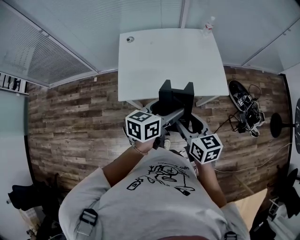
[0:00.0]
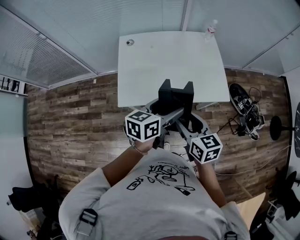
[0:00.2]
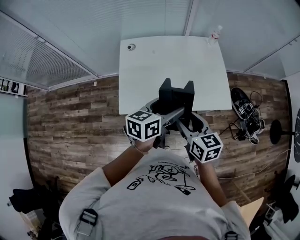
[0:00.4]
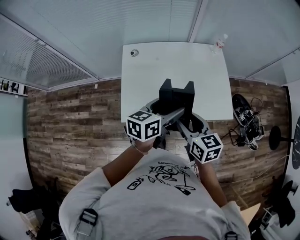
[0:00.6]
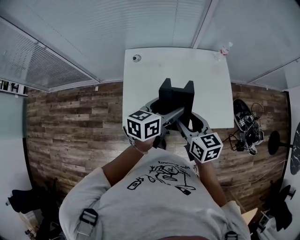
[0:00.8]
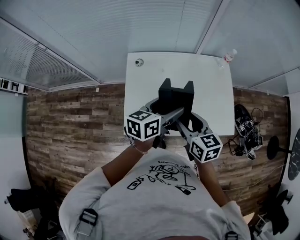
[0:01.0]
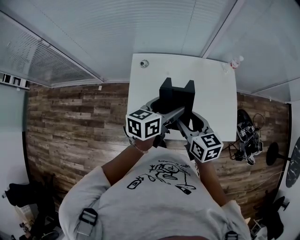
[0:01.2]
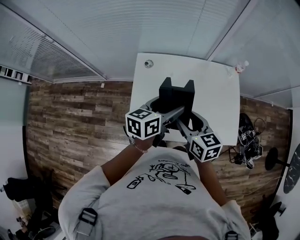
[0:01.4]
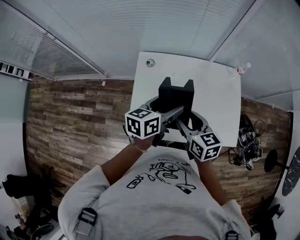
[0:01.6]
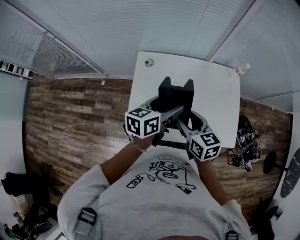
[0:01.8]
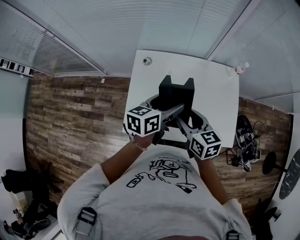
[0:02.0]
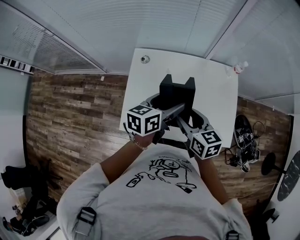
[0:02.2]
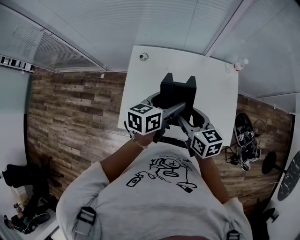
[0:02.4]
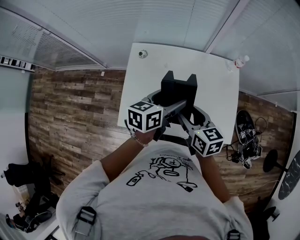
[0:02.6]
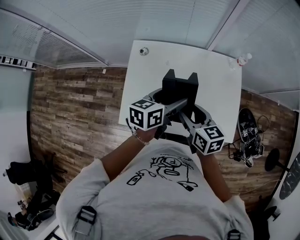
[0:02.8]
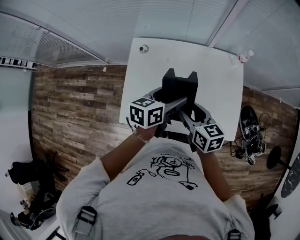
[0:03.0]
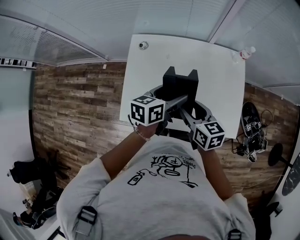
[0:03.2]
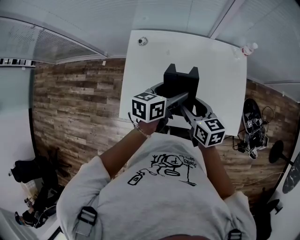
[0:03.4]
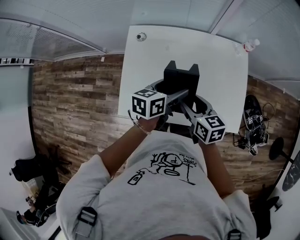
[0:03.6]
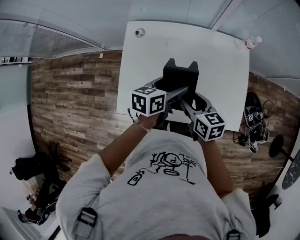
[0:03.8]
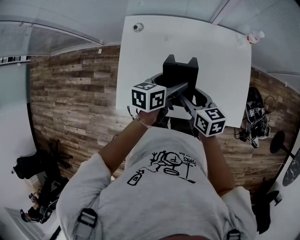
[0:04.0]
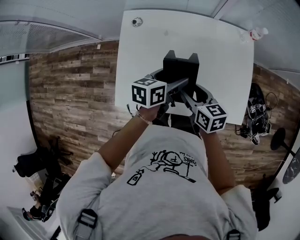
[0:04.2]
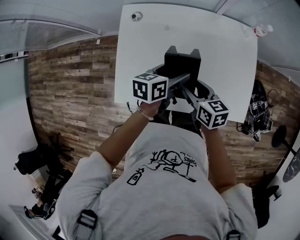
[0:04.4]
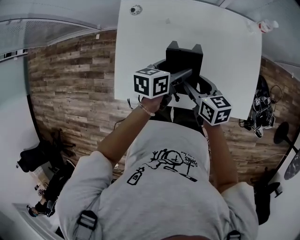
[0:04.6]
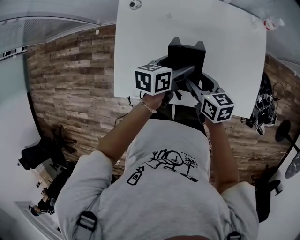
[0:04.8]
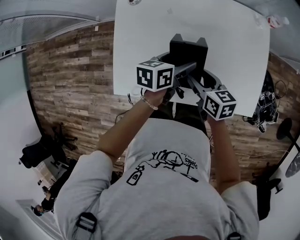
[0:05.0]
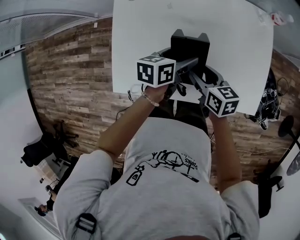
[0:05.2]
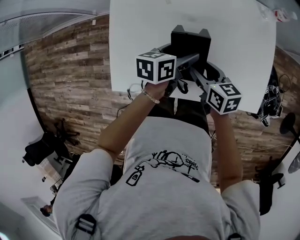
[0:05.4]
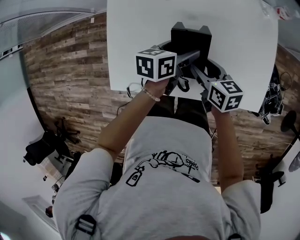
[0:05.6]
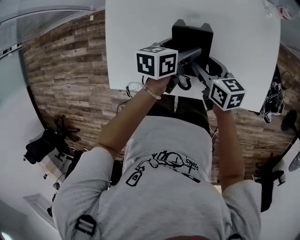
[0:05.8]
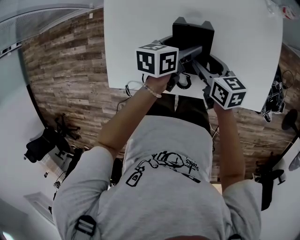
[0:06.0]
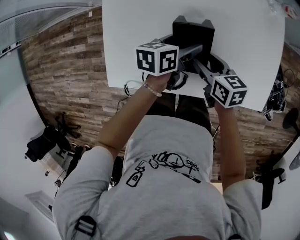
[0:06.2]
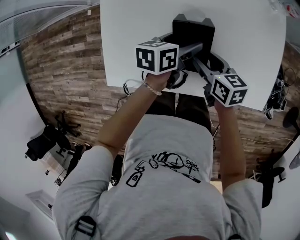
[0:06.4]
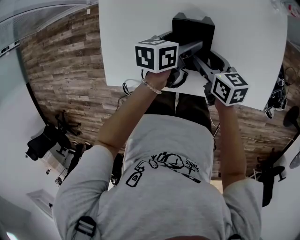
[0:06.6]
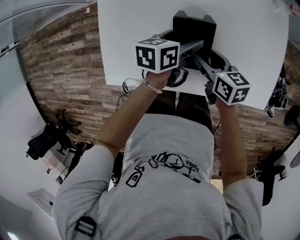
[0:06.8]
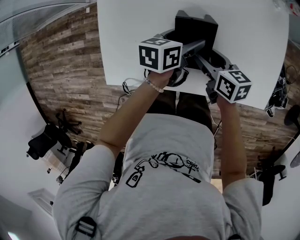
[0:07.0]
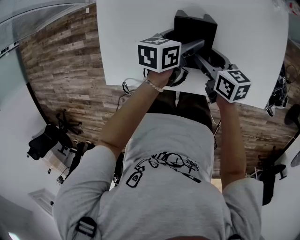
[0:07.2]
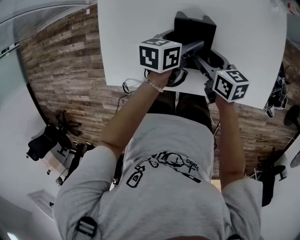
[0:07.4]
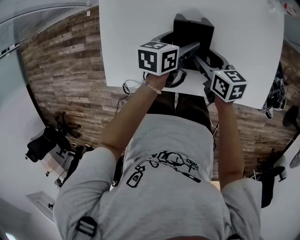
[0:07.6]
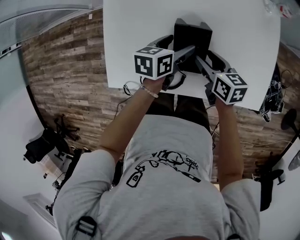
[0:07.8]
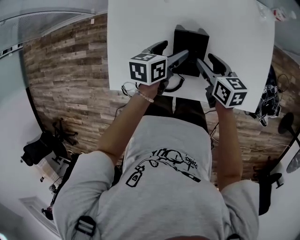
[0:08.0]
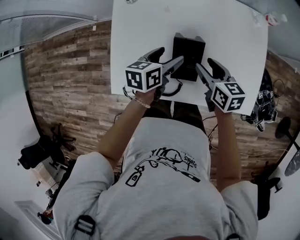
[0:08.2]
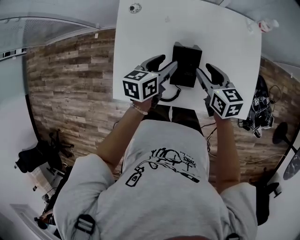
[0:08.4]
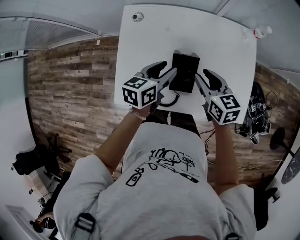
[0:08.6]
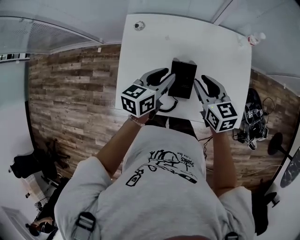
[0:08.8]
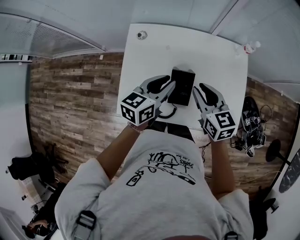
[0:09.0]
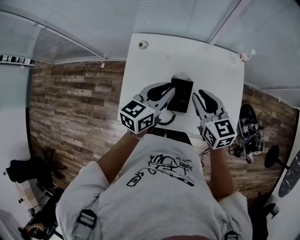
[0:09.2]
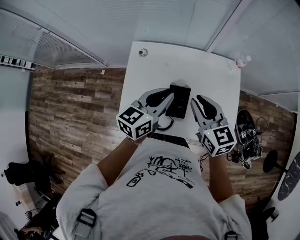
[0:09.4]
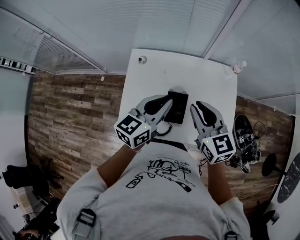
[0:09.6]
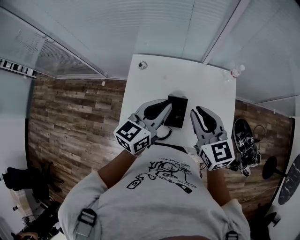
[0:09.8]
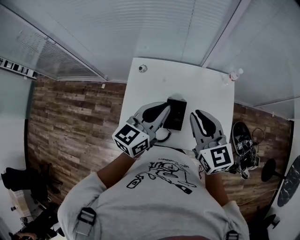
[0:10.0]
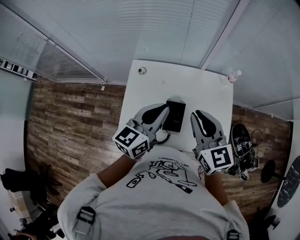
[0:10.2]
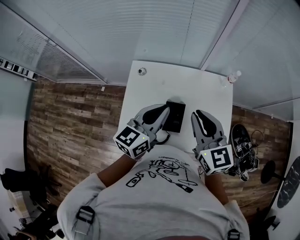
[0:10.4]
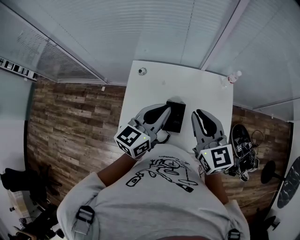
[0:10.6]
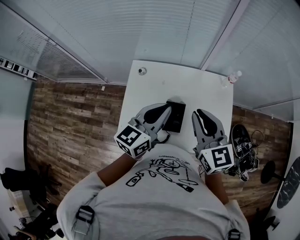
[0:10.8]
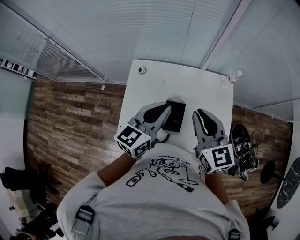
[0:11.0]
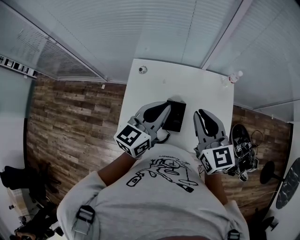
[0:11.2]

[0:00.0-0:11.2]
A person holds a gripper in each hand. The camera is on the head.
0:00.0 to 0:01.6: The grippers both shift forward and to the left by some 35 cm.
0:01.6 to 0:03.2: Both grippers move to the right and downward, roughly 10 cm.
0:03.2 to 0:04.8: Both grippers move downward, some 15 cm.
0:04.8 to 0:06.4: Both grippers travel together downward, about 10 cm.
0:06.4 to 0:08.0: The grippers move only a little.
0:08.0 to 0:09.6: The grippers both shift upward by roughly 30 cm. The right gripper changes its angle by approximately 40 degrees, and closes up. Meanwhile the left gripper rotates some 40 degrees, and closes.
0:09.6 to 0:11.2: The right gripper is displaced upward by about 5 cm.

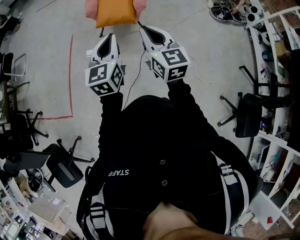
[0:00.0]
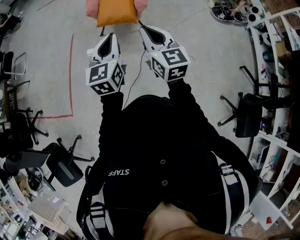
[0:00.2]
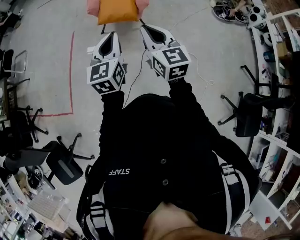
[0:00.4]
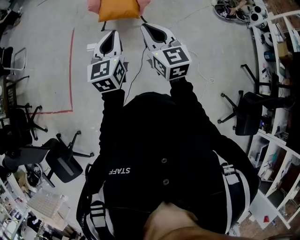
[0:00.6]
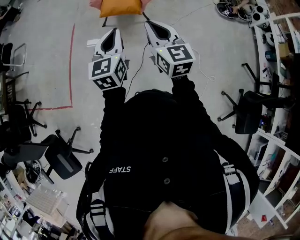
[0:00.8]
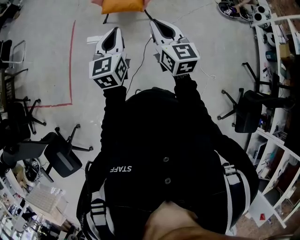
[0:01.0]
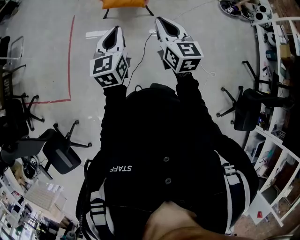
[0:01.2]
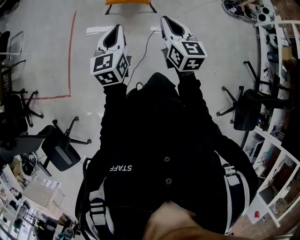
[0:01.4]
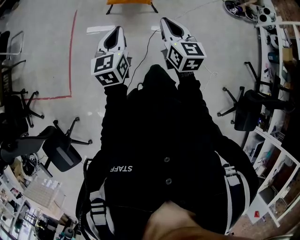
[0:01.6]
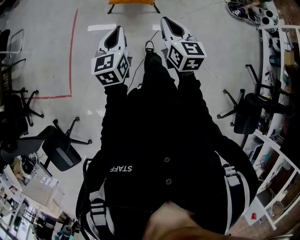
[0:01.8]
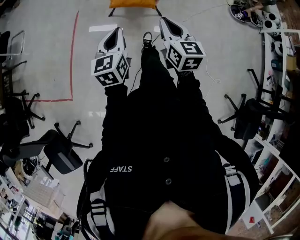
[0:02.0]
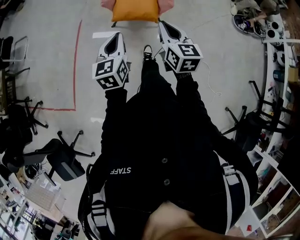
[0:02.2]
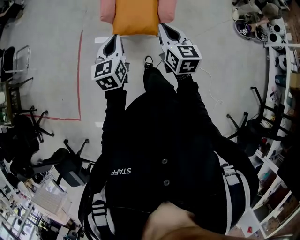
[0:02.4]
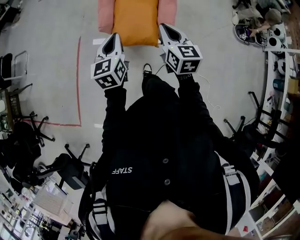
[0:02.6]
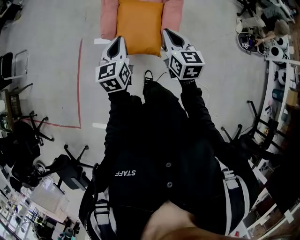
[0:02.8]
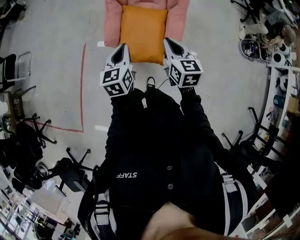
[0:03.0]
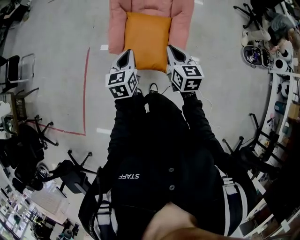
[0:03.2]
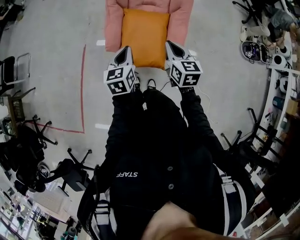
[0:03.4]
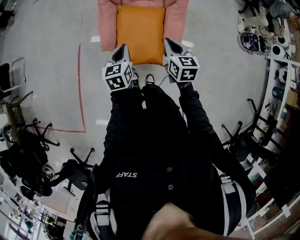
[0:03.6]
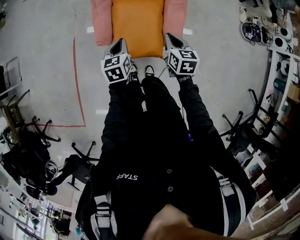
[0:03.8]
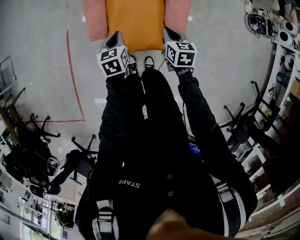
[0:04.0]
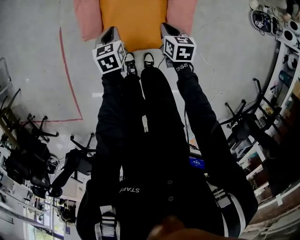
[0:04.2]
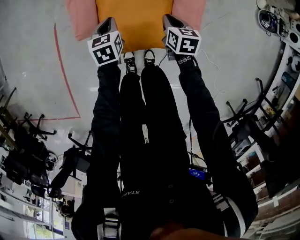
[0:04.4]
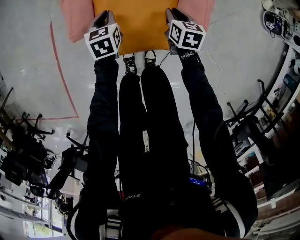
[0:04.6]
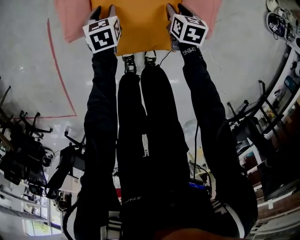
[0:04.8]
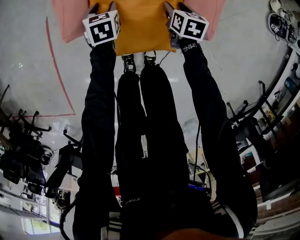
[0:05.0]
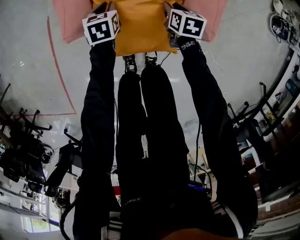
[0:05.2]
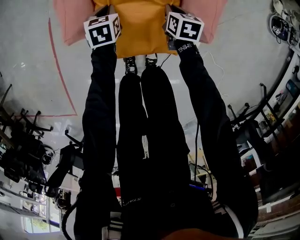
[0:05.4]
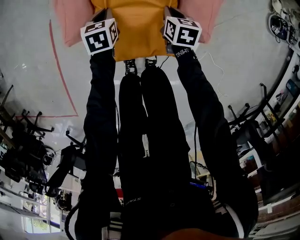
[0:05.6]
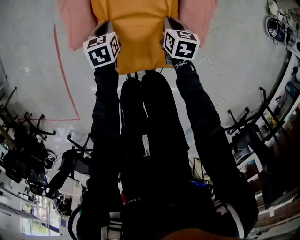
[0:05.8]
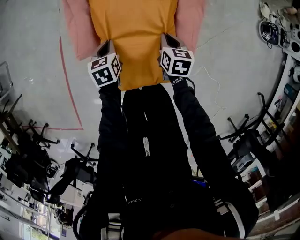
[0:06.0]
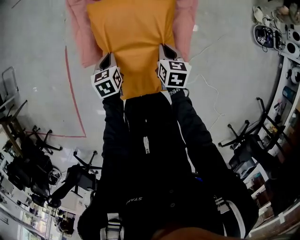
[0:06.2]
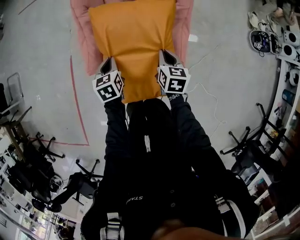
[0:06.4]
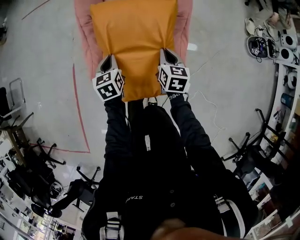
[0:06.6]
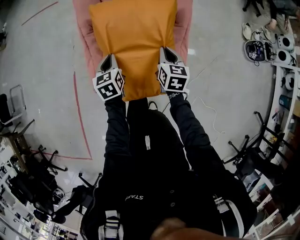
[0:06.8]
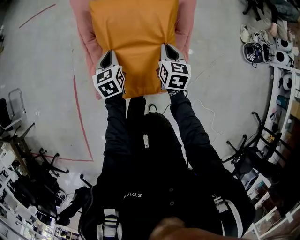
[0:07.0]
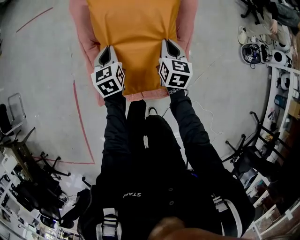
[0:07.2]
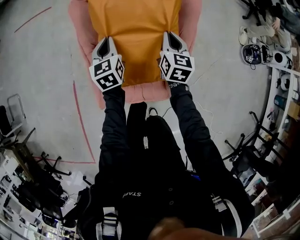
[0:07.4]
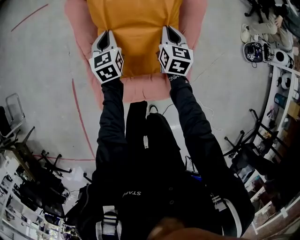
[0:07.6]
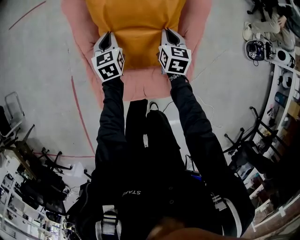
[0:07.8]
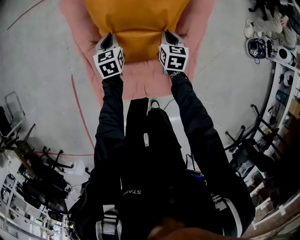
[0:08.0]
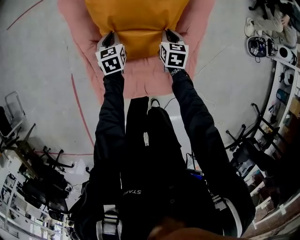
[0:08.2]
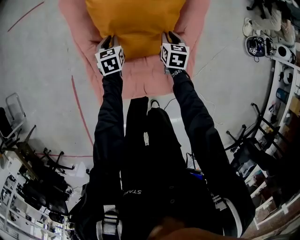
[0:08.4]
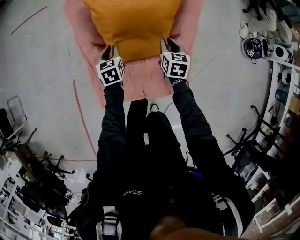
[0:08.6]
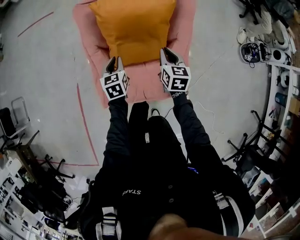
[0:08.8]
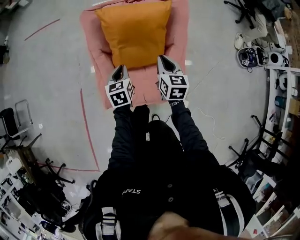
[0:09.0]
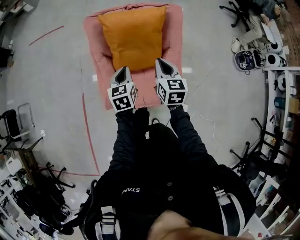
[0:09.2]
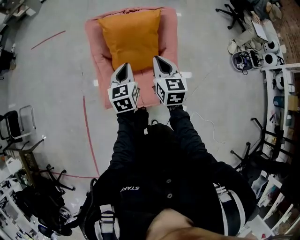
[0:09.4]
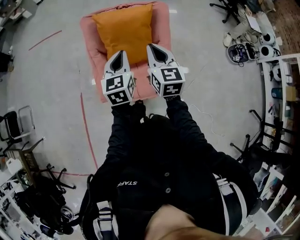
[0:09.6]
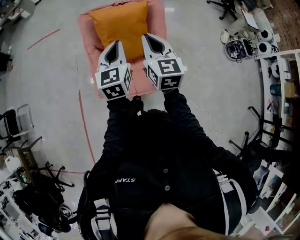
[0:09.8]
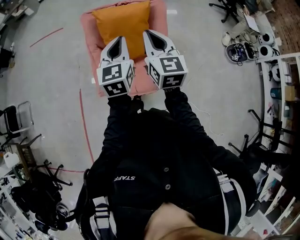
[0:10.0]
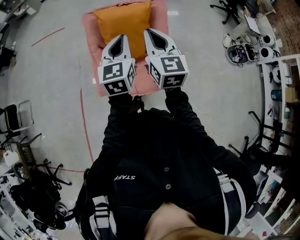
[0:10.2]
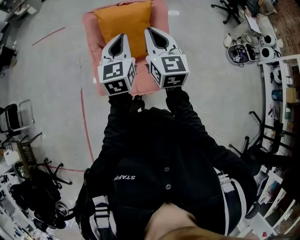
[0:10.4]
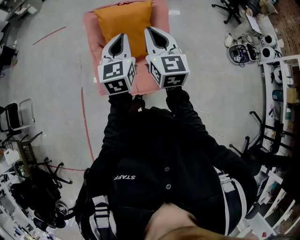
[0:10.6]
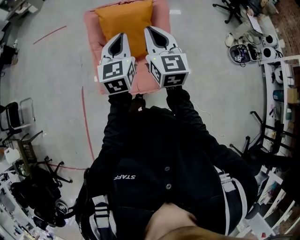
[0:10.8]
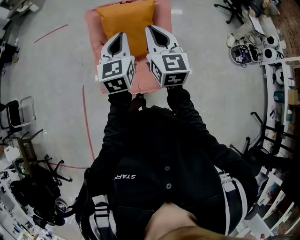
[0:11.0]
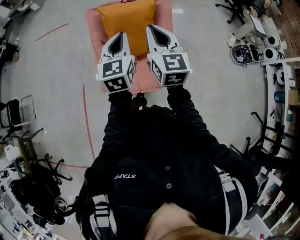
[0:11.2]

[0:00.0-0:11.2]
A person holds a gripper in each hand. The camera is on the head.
0:00.0 to 0:01.6: The right gripper moves downward and to the left, approximately 10 cm, while the left gripper moves to the left and downward, some 15 cm.
0:01.6 to 0:03.2: The pair of grippers is taken forward, about 50 cm.
0:03.2 to 0:04.8: The two grippers go some 50 cm downward. The right gripper swivels some 30 degrees, and opens its fingers. Meanwhile the left gripper swivels some 30 degrees, and opens.
0:04.8 to 0:06.4: The grippers both shift upward by some 20 cm. The left gripper closes. Meanwhile the right gripper closes.
0:06.4 to 0:08.0: The grippers both shift forward by approximately 30 cm.
0:08.0 to 0:09.6: Both grippers move upward and backward, approximately 50 cm. The right gripper rotates about 30 degrees; the left gripper changes its angle by roughly 20 degrees.
0:09.6 to 0:11.2: The grippers both shift upward by some 10 cm.

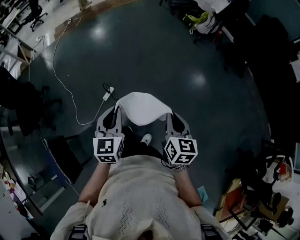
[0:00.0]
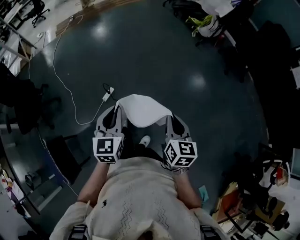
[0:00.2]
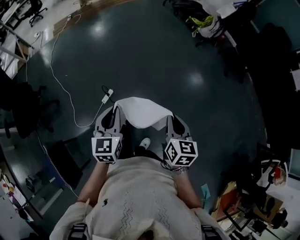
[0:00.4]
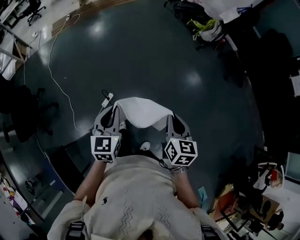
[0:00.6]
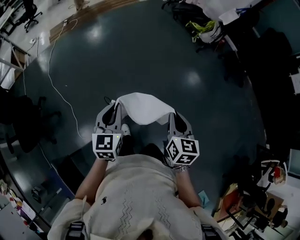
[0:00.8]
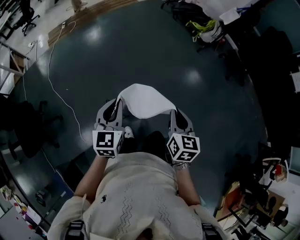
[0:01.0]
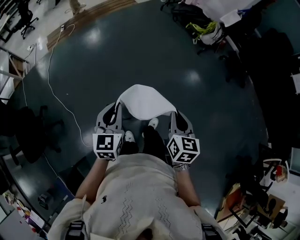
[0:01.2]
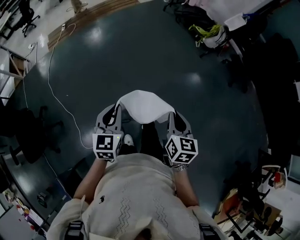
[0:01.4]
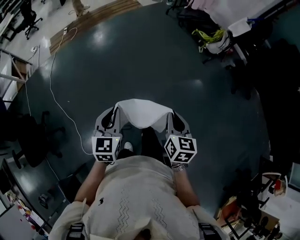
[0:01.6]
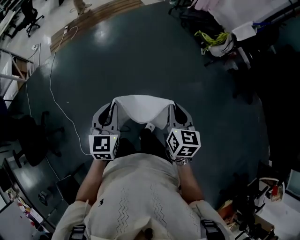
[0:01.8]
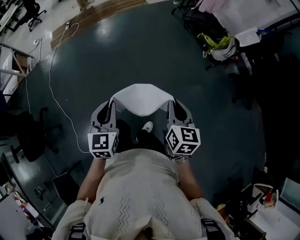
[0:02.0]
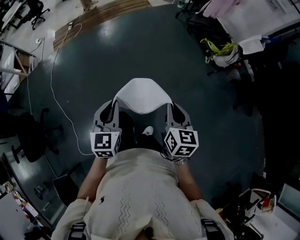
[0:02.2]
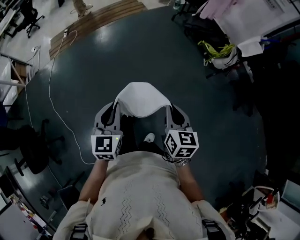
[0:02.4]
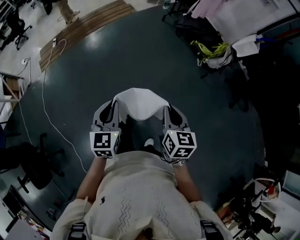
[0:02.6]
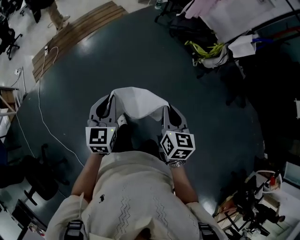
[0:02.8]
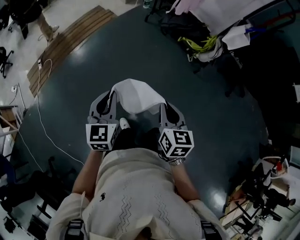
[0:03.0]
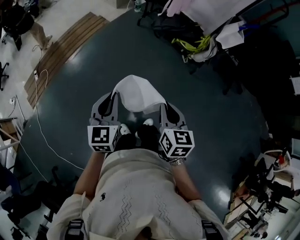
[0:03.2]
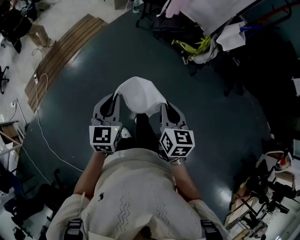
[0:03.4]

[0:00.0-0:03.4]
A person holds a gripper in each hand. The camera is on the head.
0:00.0 to 0:01.6: The two grippers travel together, forward, approximately 50 cm.
0:01.6 to 0:03.4: Both grippers are carried forward, approximately 60 cm.
